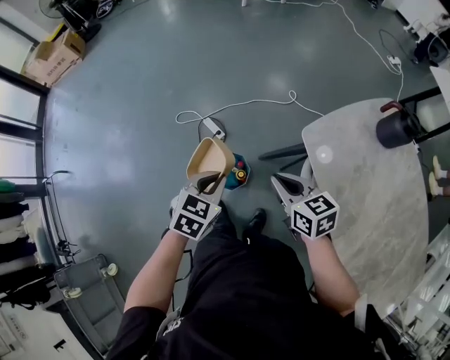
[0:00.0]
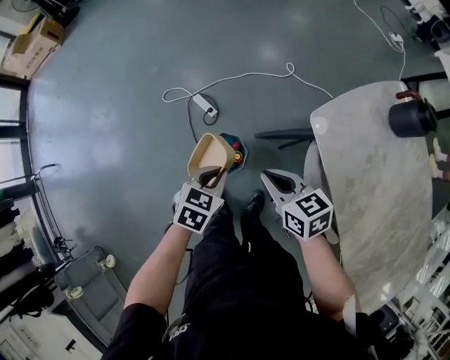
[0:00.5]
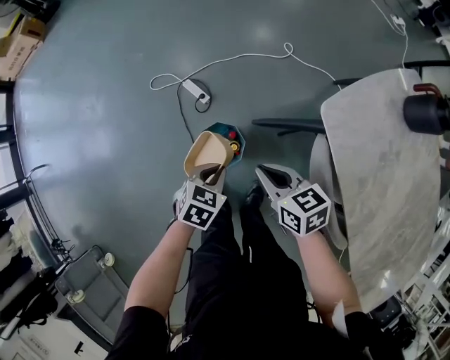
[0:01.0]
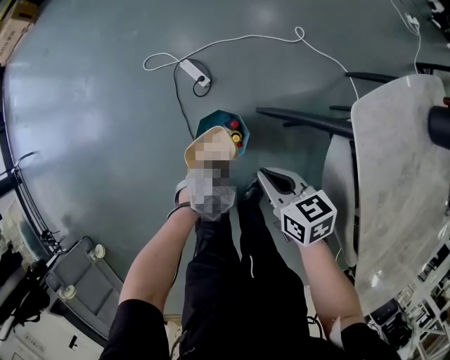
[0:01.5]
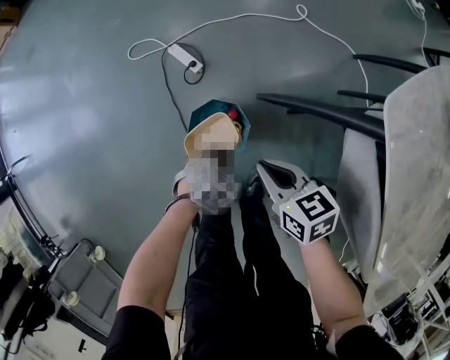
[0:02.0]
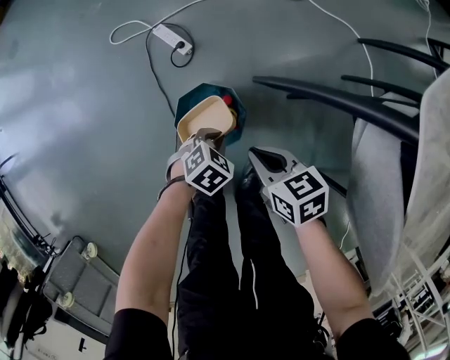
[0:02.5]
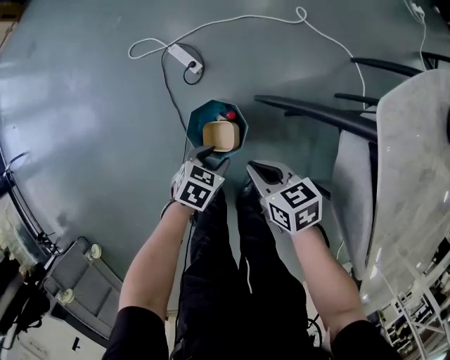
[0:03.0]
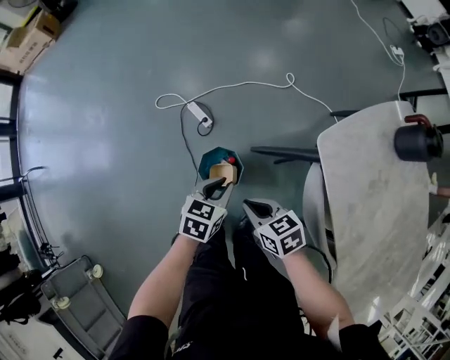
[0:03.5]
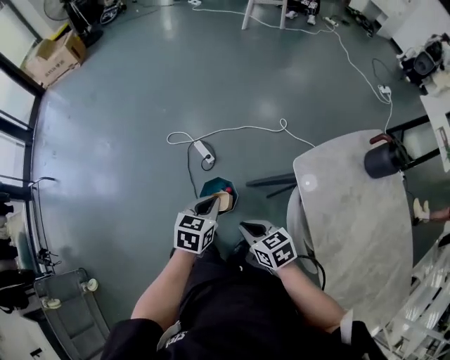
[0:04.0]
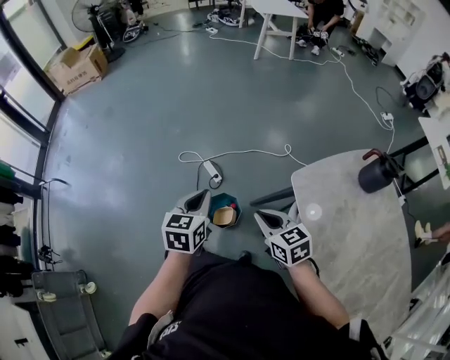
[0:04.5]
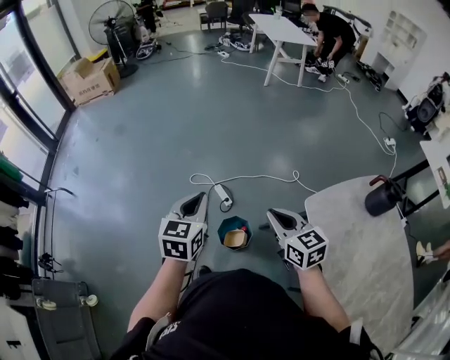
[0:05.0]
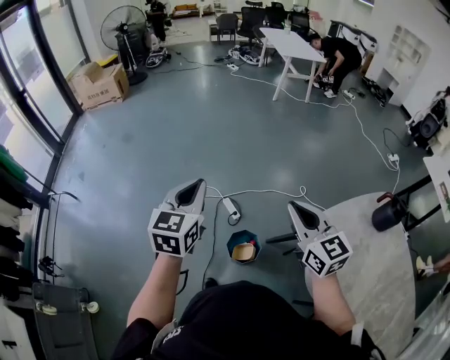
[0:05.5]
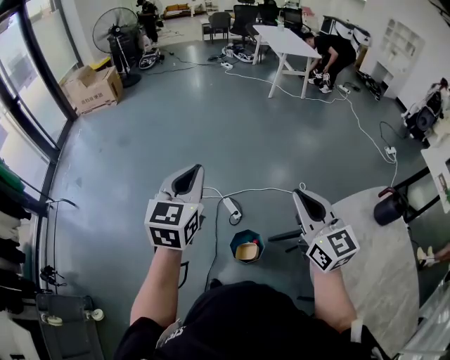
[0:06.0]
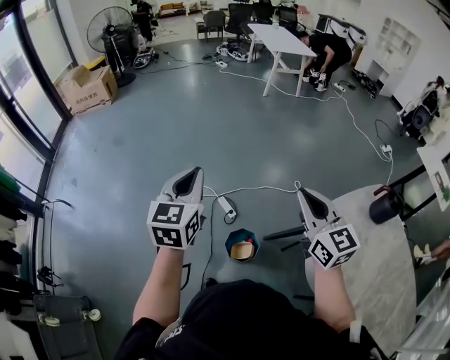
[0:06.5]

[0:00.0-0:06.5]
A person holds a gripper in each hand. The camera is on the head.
0:00.0 to 0:02.0: Both grippers travel together downward, roughly 35 cm. The left gripper rotates some 30 degrees.
0:02.0 to 0:04.5: The left gripper travels upward by about 50 cm, angles its fingers upward, by about 40 degrees, and opens and closes again. Meanwhile the right gripper heads upward, covering approximately 30 cm, and changes its angle by roughly 30 degrees.
0:04.5 to 0:06.5: The right gripper is displaced upward and forward by about 25 cm, and swivels approximately 30 degrees. Meanwhile the left gripper shifts roughly 25 cm upward, to the left and forward, and changes its angle by about 20 degrees.

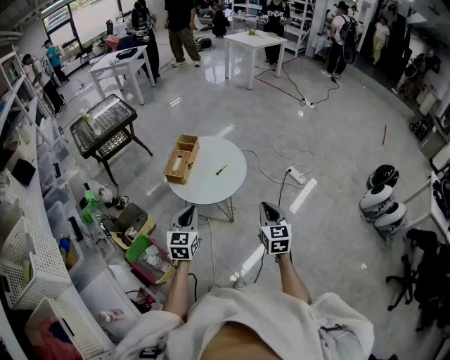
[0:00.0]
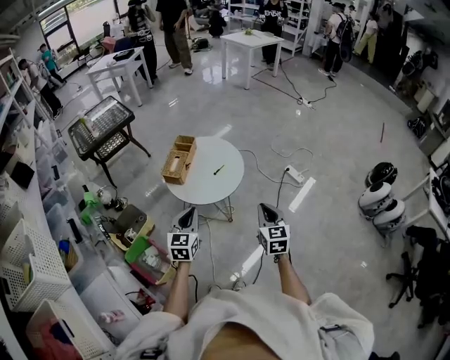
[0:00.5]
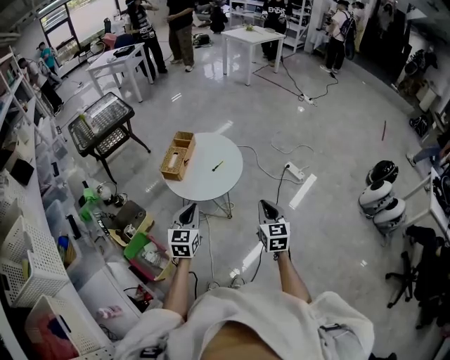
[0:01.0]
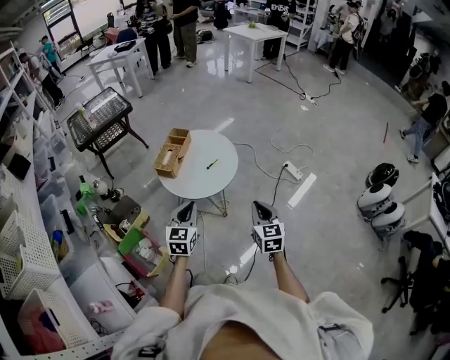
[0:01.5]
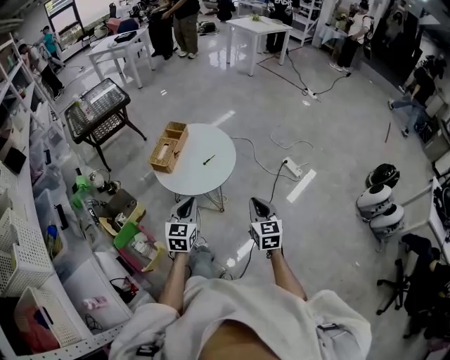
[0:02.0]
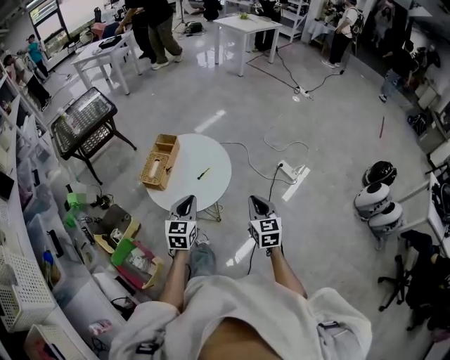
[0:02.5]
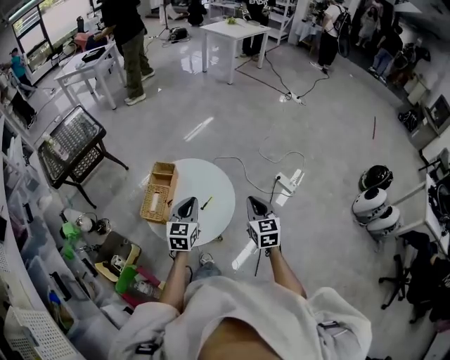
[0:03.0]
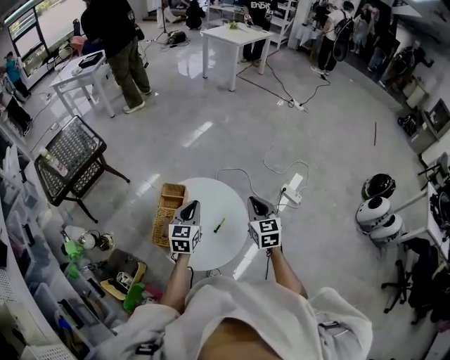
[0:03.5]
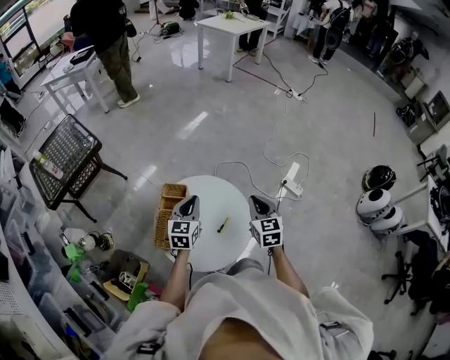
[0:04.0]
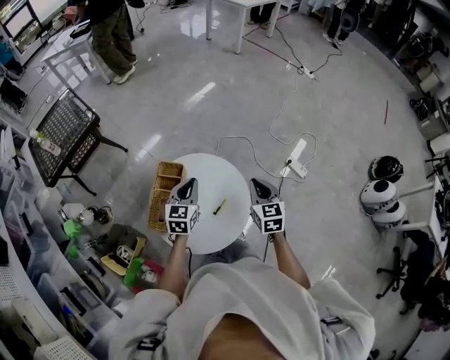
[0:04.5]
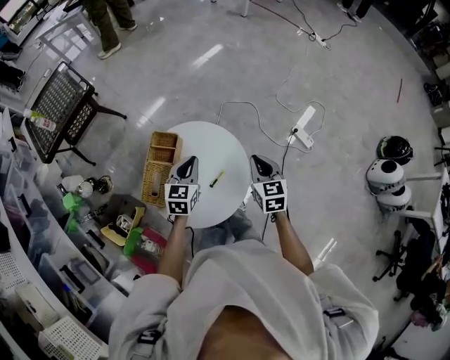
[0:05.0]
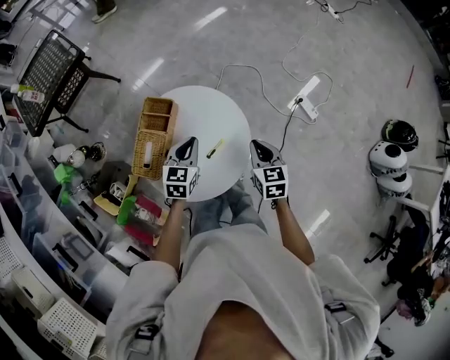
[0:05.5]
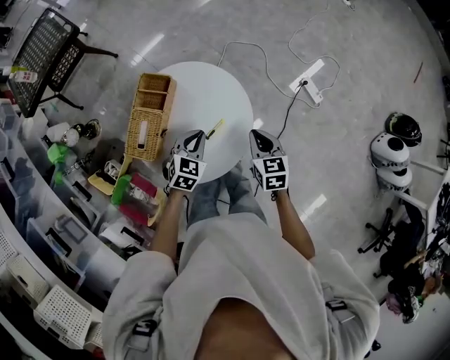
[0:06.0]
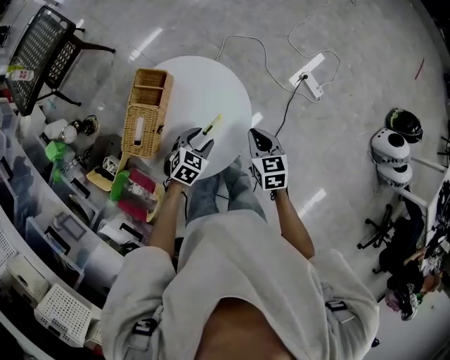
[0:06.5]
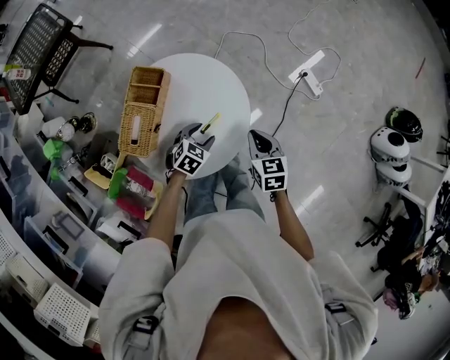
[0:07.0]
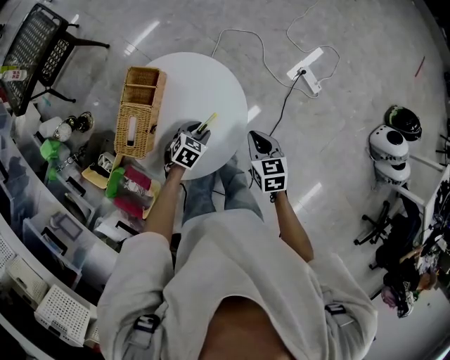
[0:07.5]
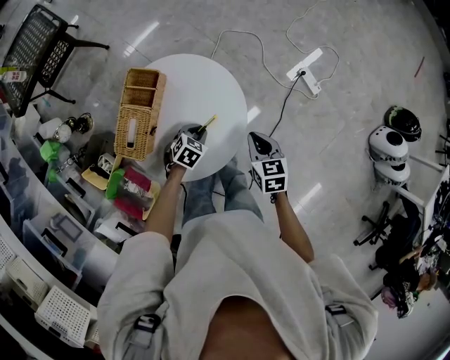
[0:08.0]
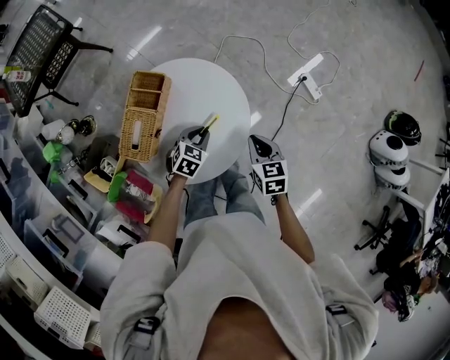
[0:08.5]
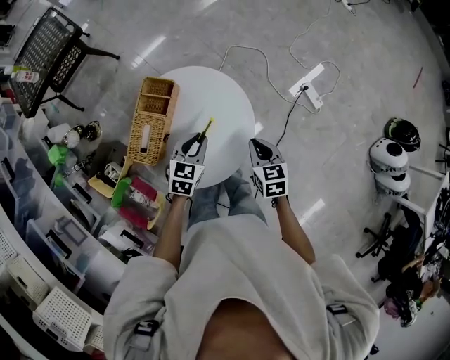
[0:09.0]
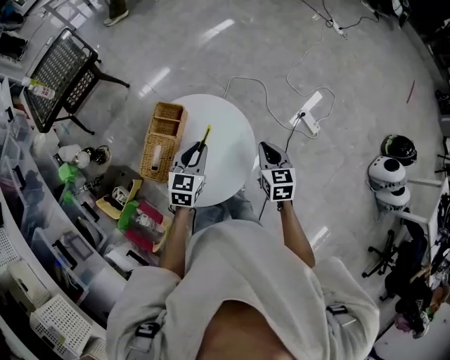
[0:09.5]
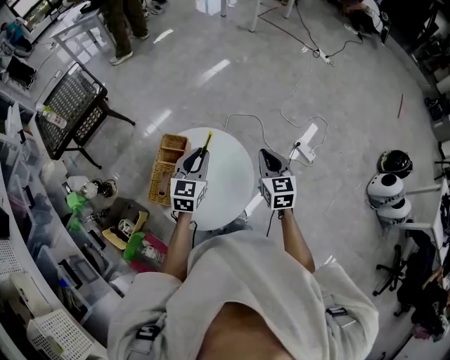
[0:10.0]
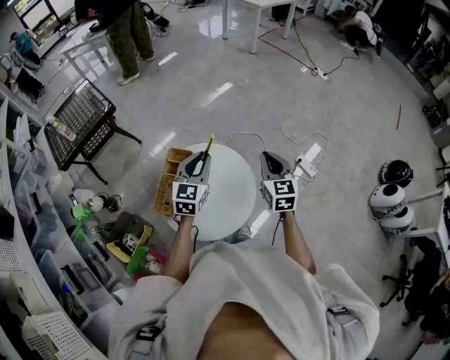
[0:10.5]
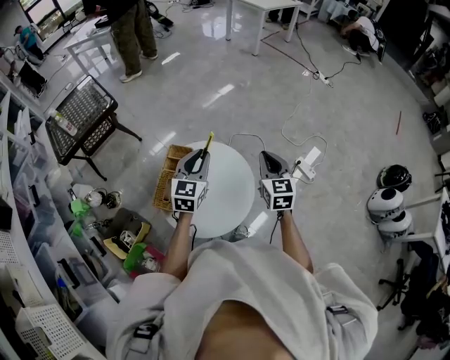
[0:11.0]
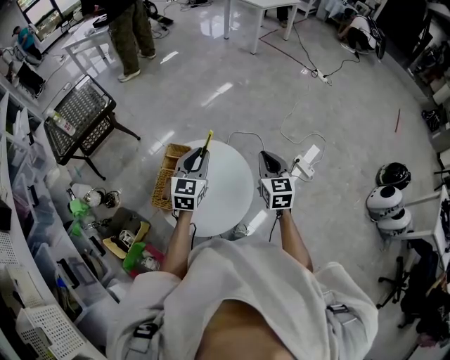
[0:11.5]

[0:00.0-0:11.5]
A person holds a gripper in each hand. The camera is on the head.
0:00.0 to 0:02.0: The left gripper is displaced to the right by roughly 5 cm. Meanwhile the right gripper moves about 5 cm.
0:02.0 to 0:04.0: The grippers both shift forward by approximately 35 cm.
0:04.0 to 0:06.0: The right gripper moves downward and backward, about 15 cm, and changes its angle by approximately 20 degrees. The left gripper goes approximately 20 cm downward, backward and to the right, and changes its angle by some 30 degrees.
0:06.0 to 0:07.5: The left gripper moves downward, roughly 10 cm, changes its angle by roughly 20 degrees, and opens.
0:07.5 to 0:09.5: The right gripper goes about 10 cm upward and forward. Meanwhile the left gripper goes some 20 cm upward, changes its angle by roughly 40 degrees, and closes its fingers.
0:09.5 to 0:11.5: Both grippers move upward, approximately 10 cm.

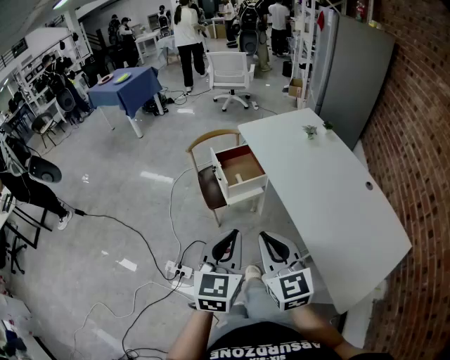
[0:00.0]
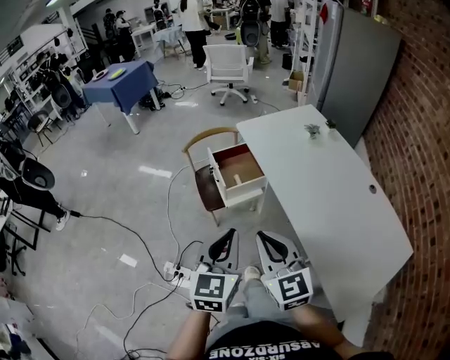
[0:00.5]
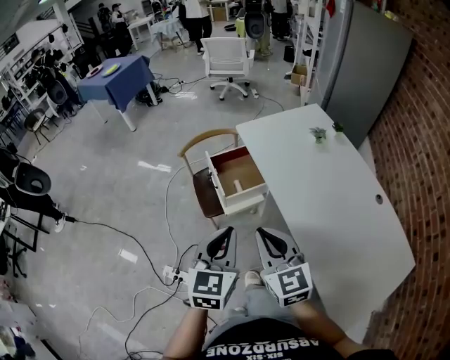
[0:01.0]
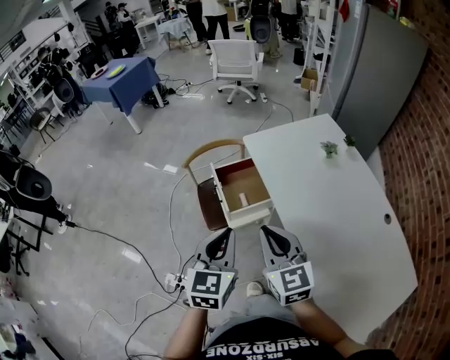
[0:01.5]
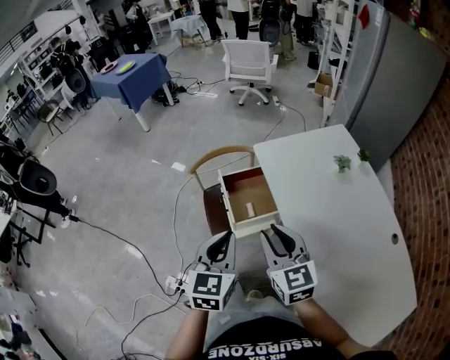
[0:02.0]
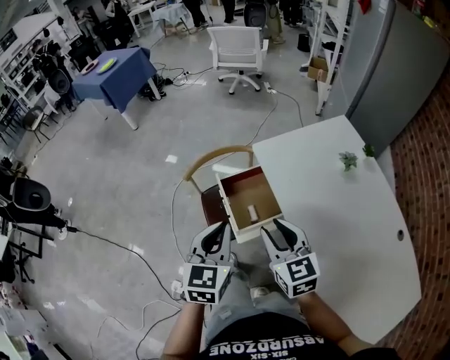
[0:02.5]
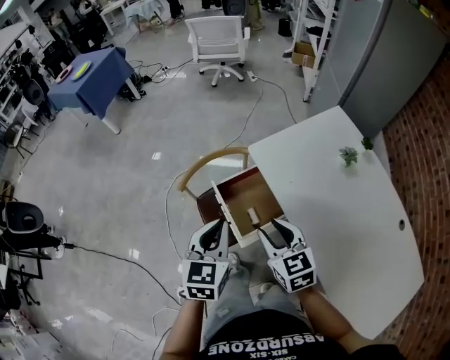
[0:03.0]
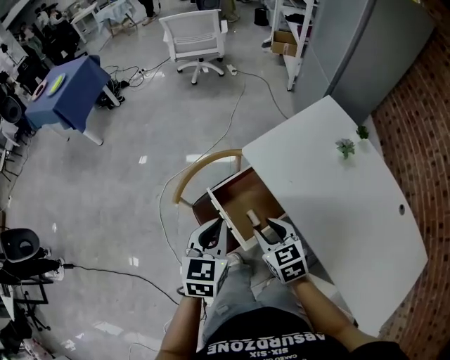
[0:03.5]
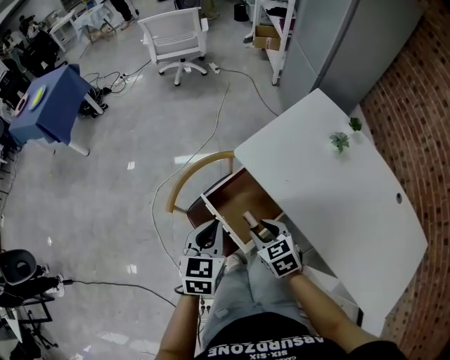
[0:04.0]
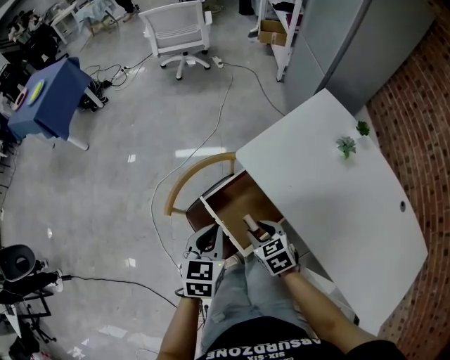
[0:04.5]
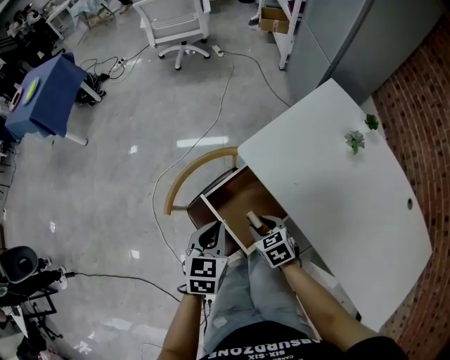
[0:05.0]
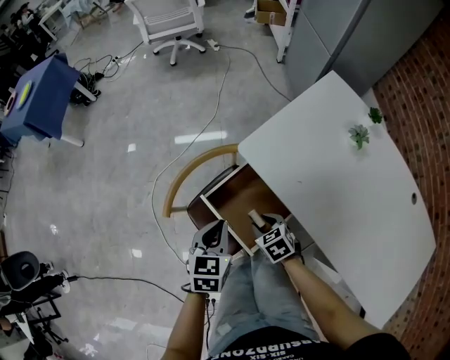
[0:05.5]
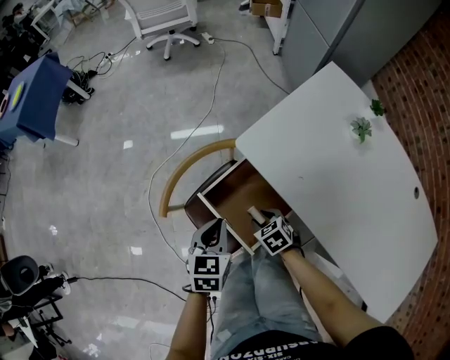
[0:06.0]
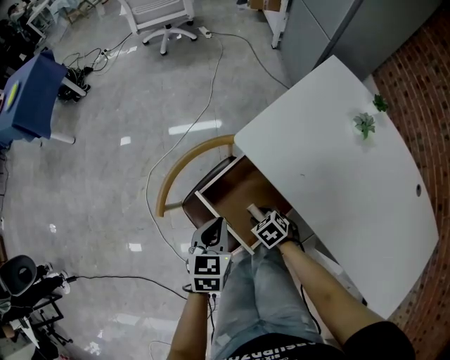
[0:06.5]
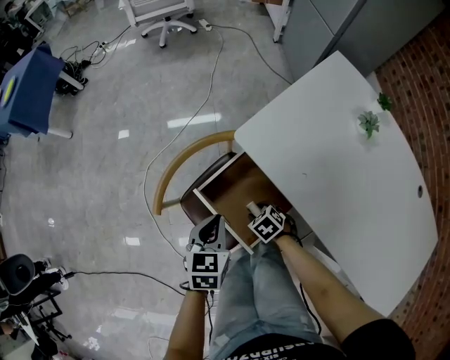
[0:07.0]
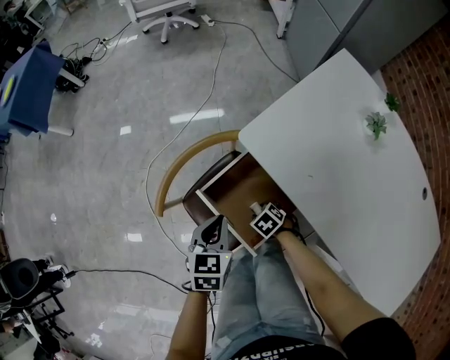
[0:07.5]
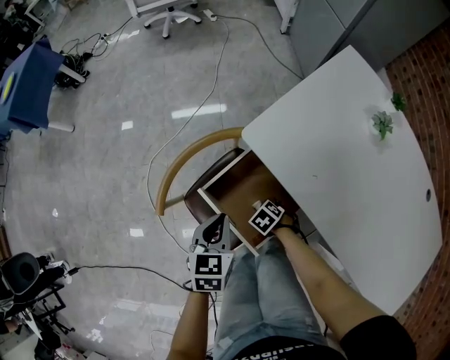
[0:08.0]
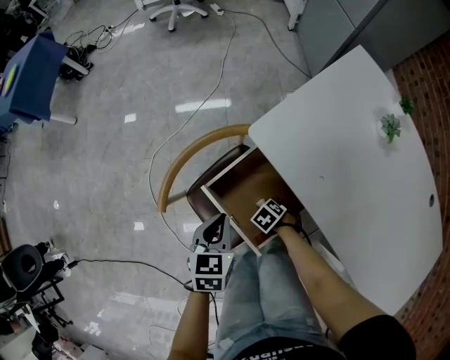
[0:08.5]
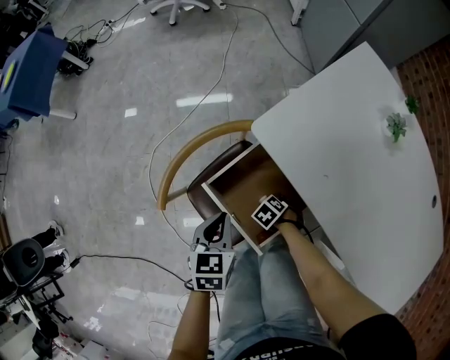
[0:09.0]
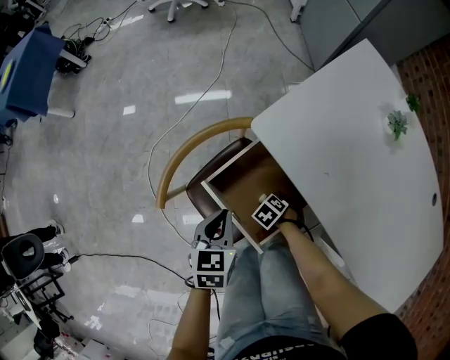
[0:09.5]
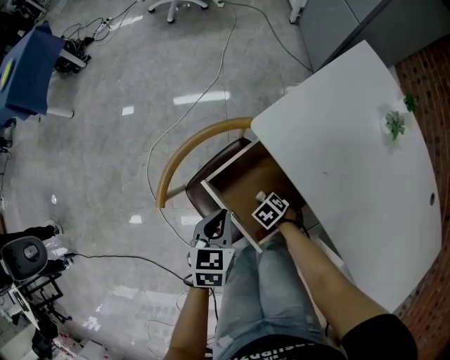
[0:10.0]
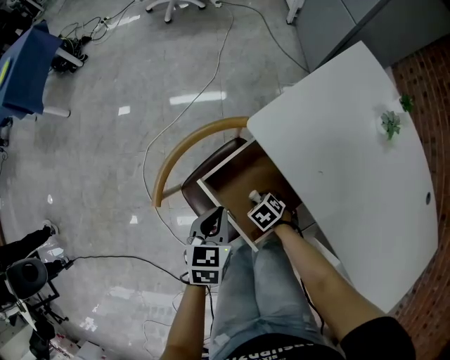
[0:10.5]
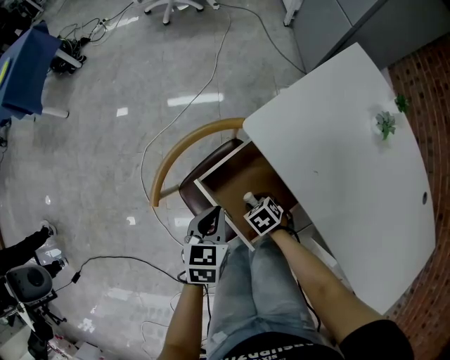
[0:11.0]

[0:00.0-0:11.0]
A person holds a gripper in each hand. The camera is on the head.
0:00.0 to 0:02.0: Both grippers travel together forward, approximately 35 cm.
0:02.0 to 0:03.5: The right gripper is displaced forward and downward by about 25 cm, and rotates roughly 30 degrees, while the left gripper shifts some 25 cm forward, and rotates about 20 degrees.
0:03.5 to 0:05.5: The left gripper heads downward and forward, covering some 15 cm, while the right gripper travels downward by approximately 20 cm, and swivels approximately 20 degrees.
0:05.5 to 0:07.5: The right gripper moves downward, approximately 15 cm, and turns by about 20 degrees. The left gripper is displaced downward by some 5 cm.
0:07.5 to 0:09.0: The right gripper is displaced downward by approximately 5 cm.
0:09.0 to 0:11.0: The right gripper moves upward, about 5 cm.
